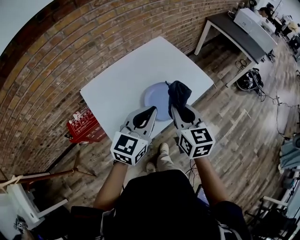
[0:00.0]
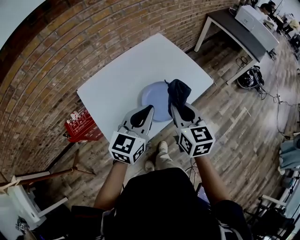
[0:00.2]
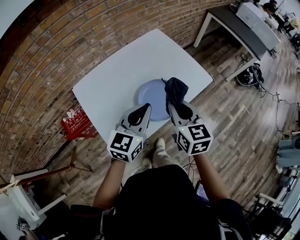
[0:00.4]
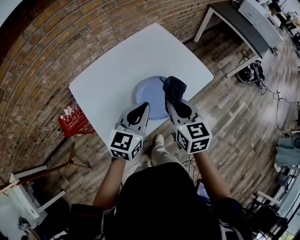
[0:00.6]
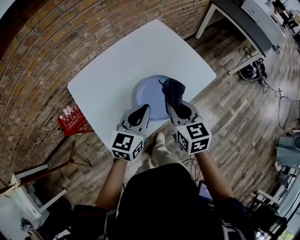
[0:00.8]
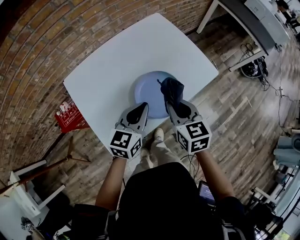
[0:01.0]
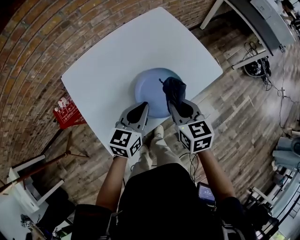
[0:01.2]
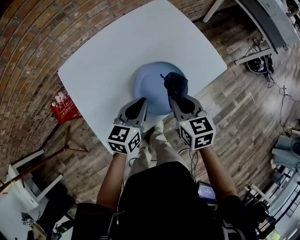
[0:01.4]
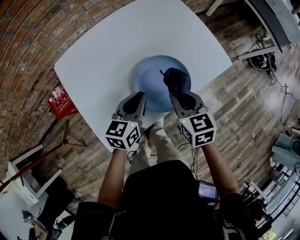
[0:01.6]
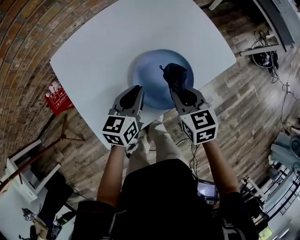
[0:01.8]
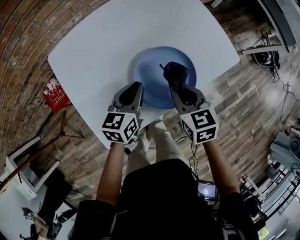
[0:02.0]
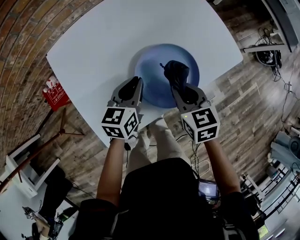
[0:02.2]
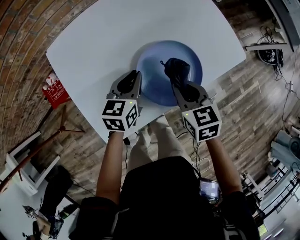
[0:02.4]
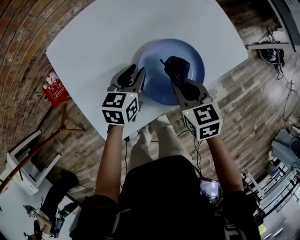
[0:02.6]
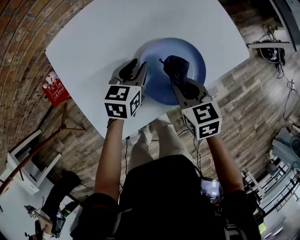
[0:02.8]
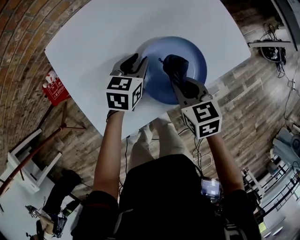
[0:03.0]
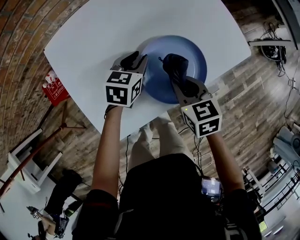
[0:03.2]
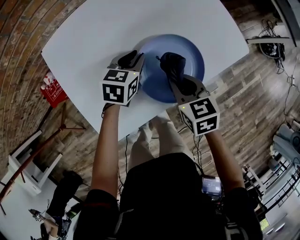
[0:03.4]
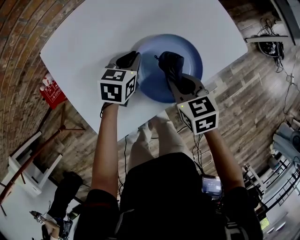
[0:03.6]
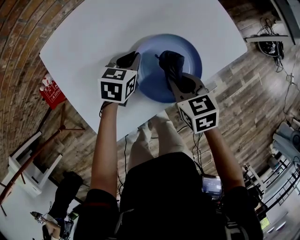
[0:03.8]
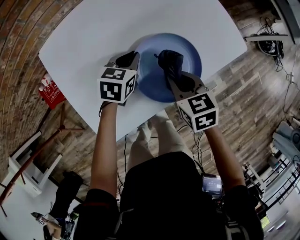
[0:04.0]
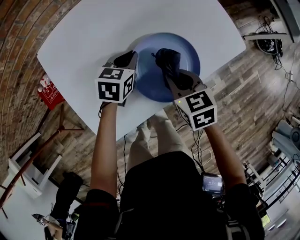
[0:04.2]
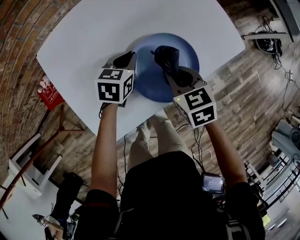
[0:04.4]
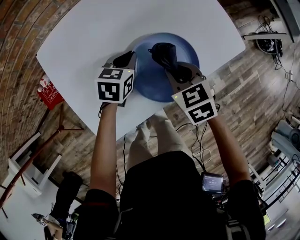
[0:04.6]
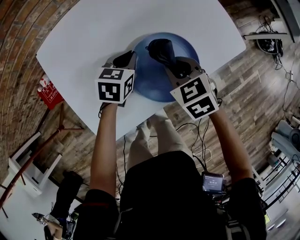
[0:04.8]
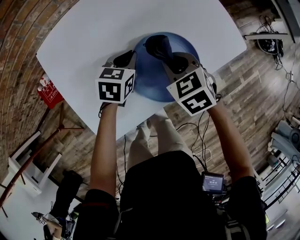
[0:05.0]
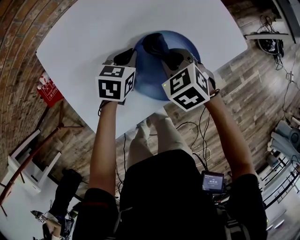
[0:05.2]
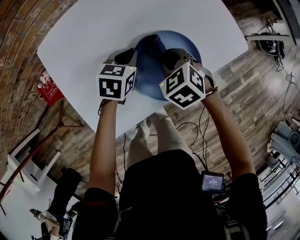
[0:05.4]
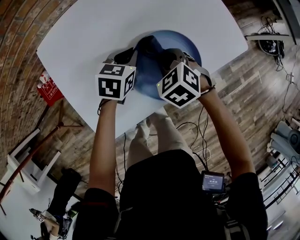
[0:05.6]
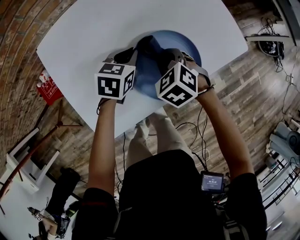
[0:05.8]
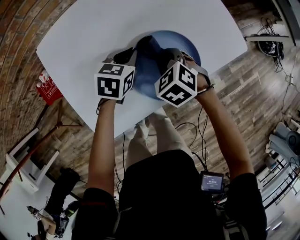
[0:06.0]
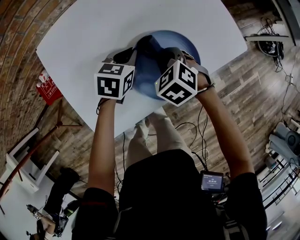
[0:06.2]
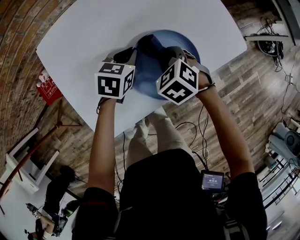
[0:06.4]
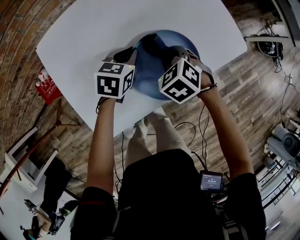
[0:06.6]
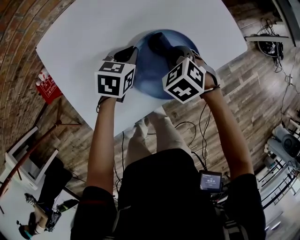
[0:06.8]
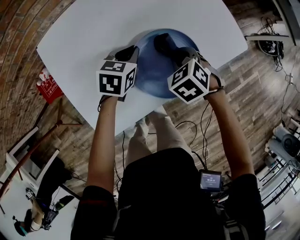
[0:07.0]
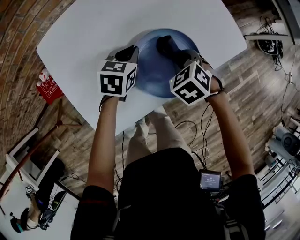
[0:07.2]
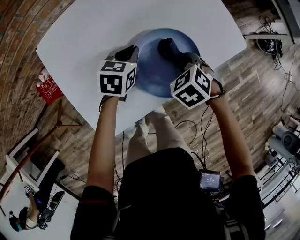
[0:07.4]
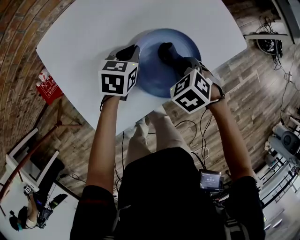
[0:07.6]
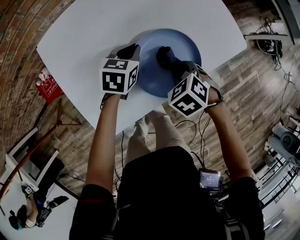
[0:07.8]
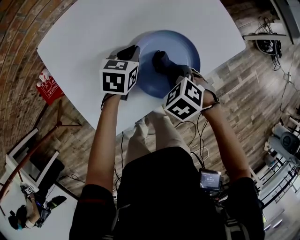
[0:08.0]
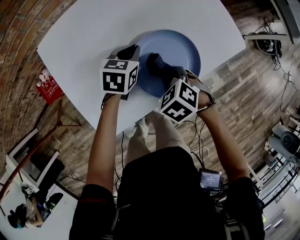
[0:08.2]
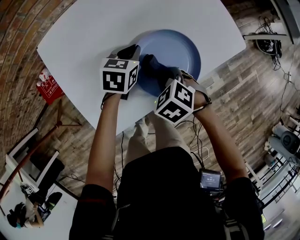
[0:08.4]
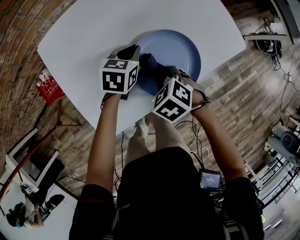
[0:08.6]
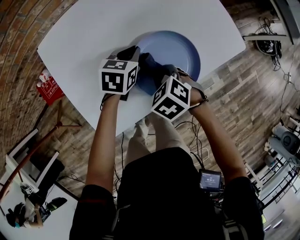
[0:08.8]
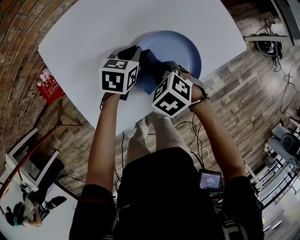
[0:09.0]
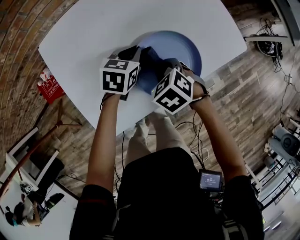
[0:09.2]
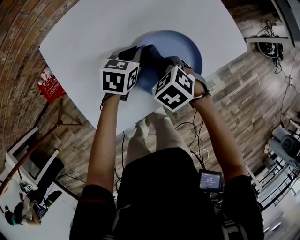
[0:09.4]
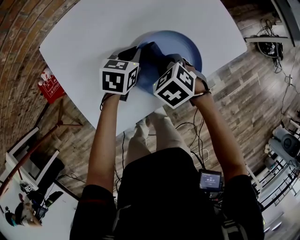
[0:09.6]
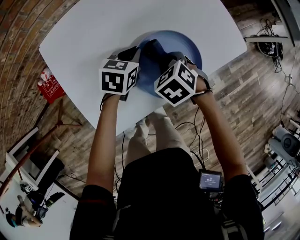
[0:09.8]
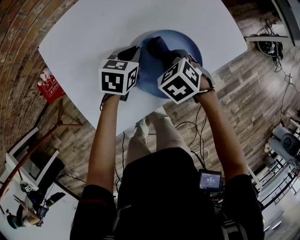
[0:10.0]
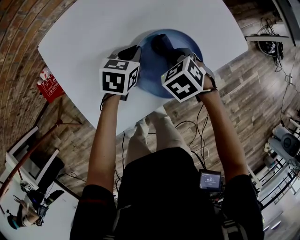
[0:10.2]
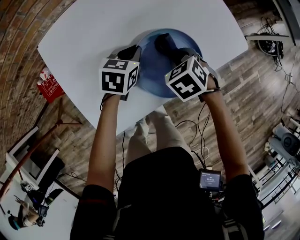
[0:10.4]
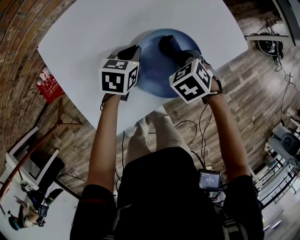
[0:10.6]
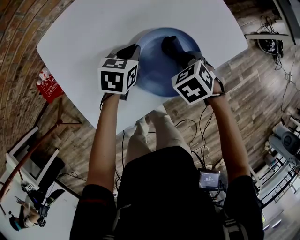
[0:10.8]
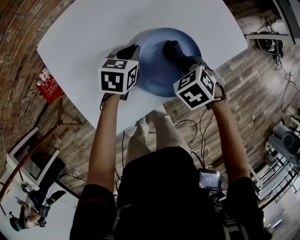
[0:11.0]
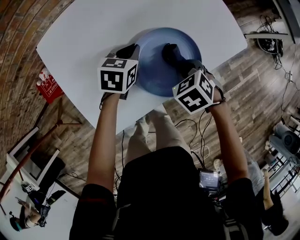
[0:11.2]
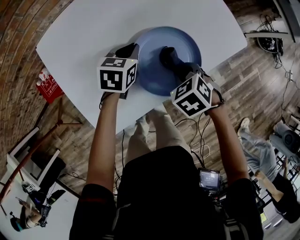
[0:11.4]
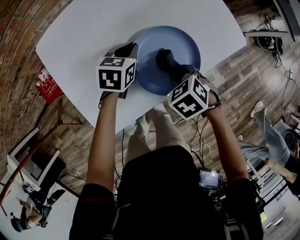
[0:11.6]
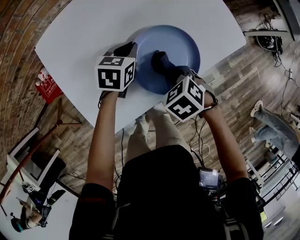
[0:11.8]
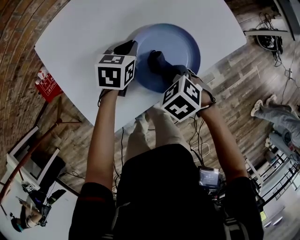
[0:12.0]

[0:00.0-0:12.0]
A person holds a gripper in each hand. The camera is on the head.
0:00.0 to 0:01.6: The right gripper shifts about 20 cm downward and forward, and rotates about 20 degrees; the left gripper travels downward by some 20 cm, and swivels roughly 30 degrees.
0:01.6 to 0:03.0: The left gripper shifts about 10 cm forward and downward, and opens. The right gripper shifts approximately 5 cm downward.
0:03.0 to 0:04.4: There are only small adjustments of the grippers.
0:04.4 to 0:06.0: The right gripper shifts by approximately 5 cm, and rotates approximately 40 degrees.
0:06.0 to 0:07.6: The right gripper goes approximately 5 cm to the right.
0:07.6 to 0:09.0: The right gripper goes roughly 5 cm to the left.
0:09.0 to 0:10.4: The right gripper is displaced to the right and forward by approximately 10 cm.
0:10.4 to 0:12.0: The right gripper goes about 10 cm backward.

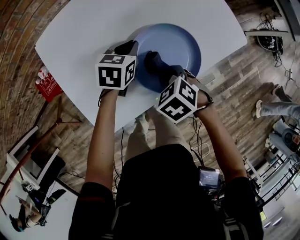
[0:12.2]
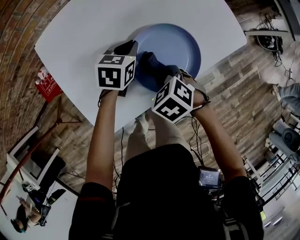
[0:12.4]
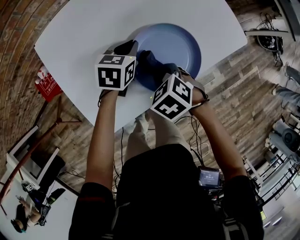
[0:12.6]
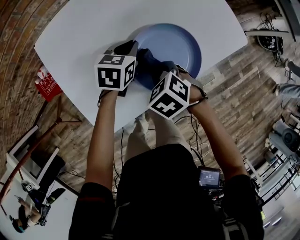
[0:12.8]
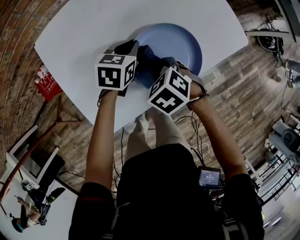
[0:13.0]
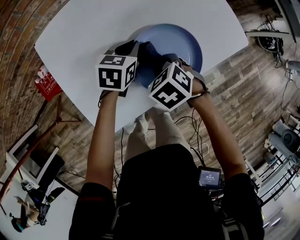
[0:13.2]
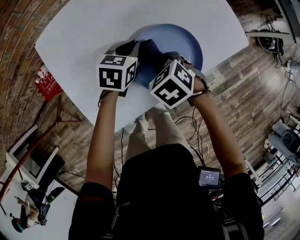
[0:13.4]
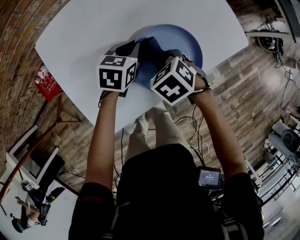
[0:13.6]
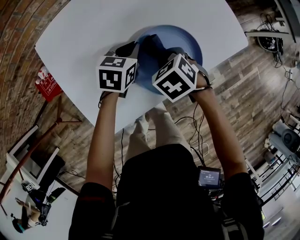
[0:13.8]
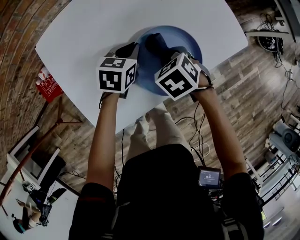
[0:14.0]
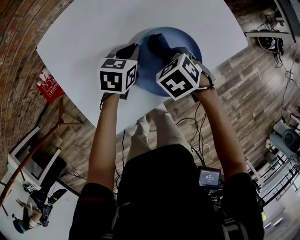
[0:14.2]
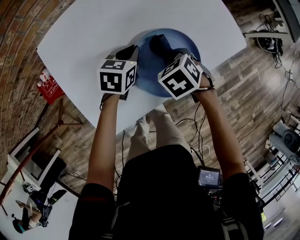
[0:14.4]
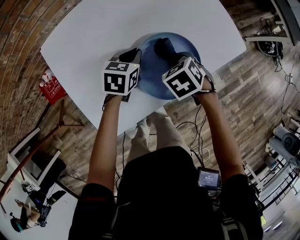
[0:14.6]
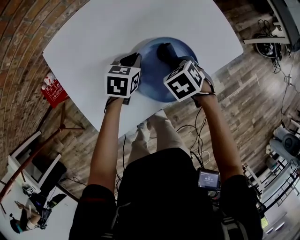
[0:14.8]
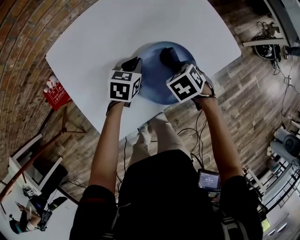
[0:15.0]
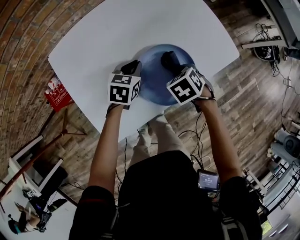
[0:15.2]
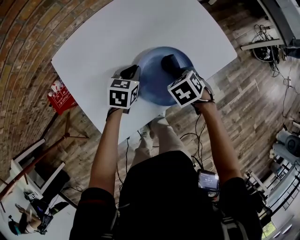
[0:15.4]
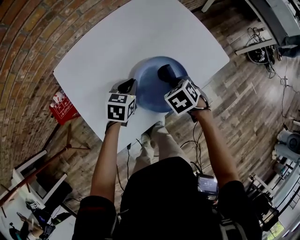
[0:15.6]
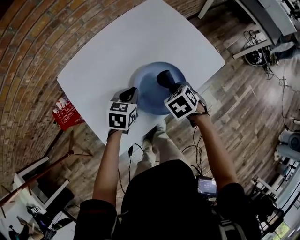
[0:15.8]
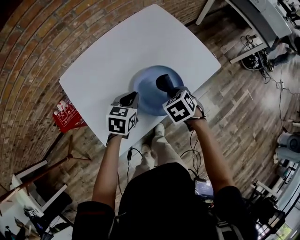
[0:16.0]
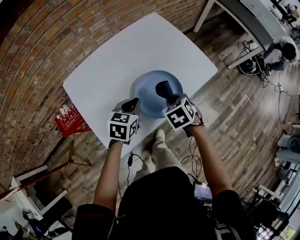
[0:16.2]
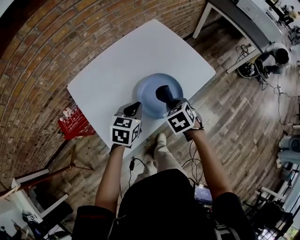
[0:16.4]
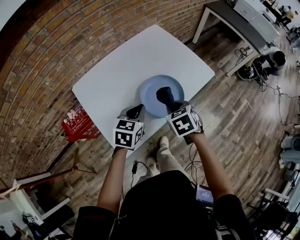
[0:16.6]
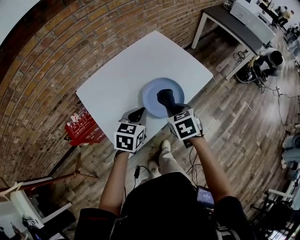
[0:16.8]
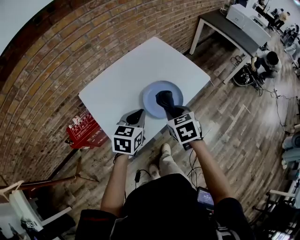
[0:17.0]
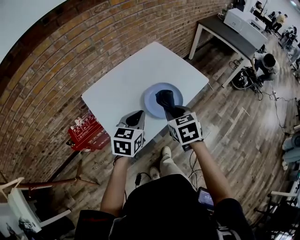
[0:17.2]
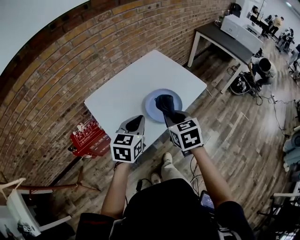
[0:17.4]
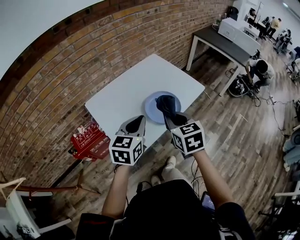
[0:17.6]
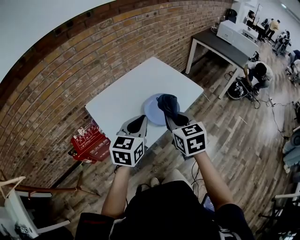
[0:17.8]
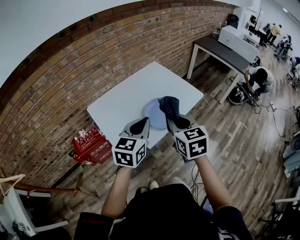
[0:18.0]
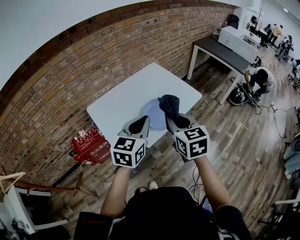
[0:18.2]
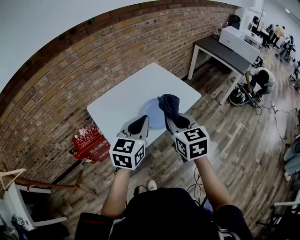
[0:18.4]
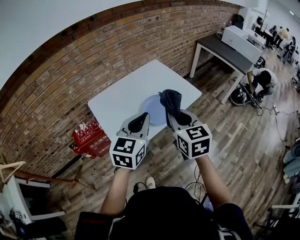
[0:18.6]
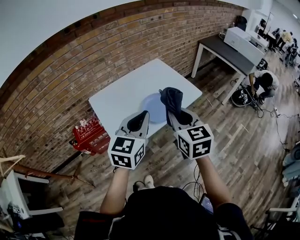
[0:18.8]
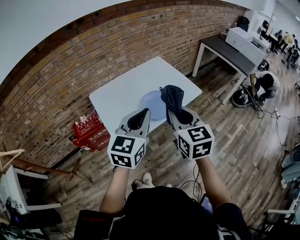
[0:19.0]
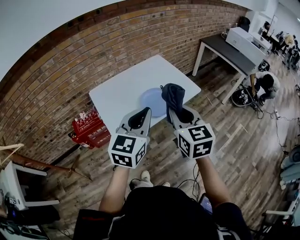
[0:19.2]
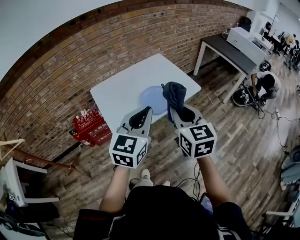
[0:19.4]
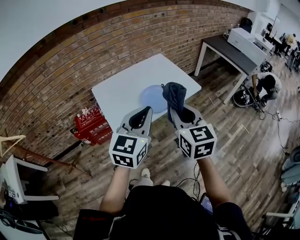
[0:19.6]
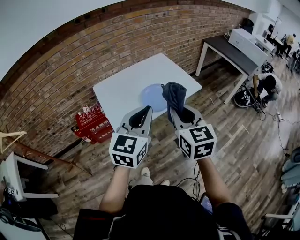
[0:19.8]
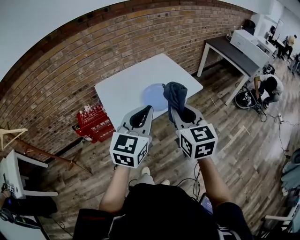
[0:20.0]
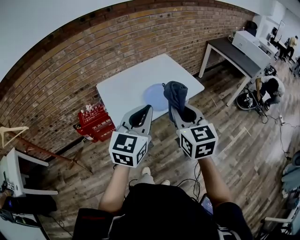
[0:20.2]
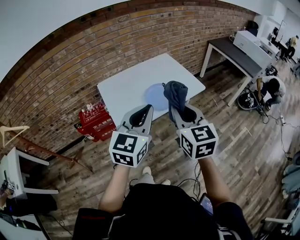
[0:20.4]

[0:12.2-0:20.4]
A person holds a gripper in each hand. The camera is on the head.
0:12.2 to 0:13.8: The right gripper travels forward by approximately 5 cm.
0:13.8 to 0:15.4: The right gripper goes roughly 5 cm to the right.
0:15.4 to 0:17.2: Both grippers move upward and backward, approximately 30 cm. The right gripper tilts its fingers about 30 degrees upward.
0:17.2 to 0:18.8: Both grippers travel together upward, backward and to the right, approximately 20 cm. The right gripper changes its angle by some 20 degrees.
0:18.8 to 0:20.4: The grippers both shift backward by approximately 10 cm.

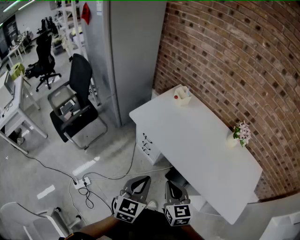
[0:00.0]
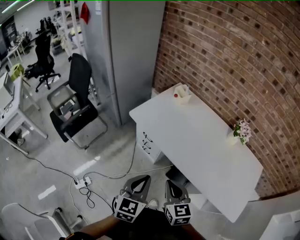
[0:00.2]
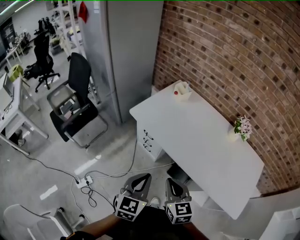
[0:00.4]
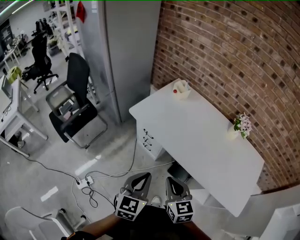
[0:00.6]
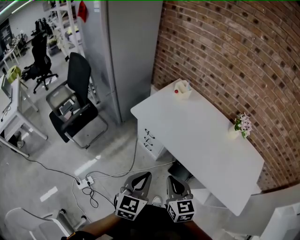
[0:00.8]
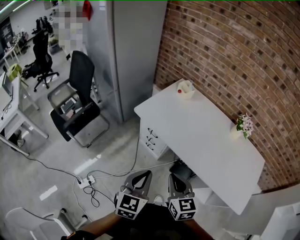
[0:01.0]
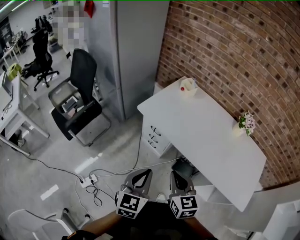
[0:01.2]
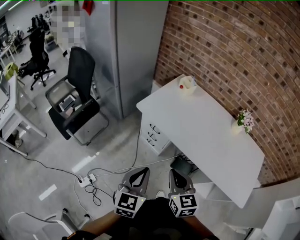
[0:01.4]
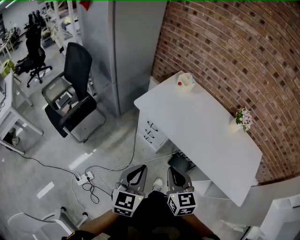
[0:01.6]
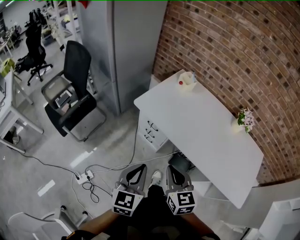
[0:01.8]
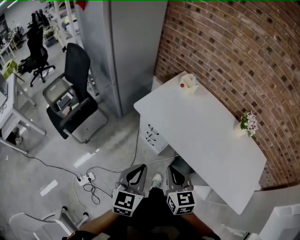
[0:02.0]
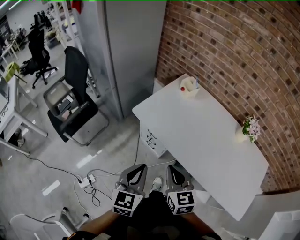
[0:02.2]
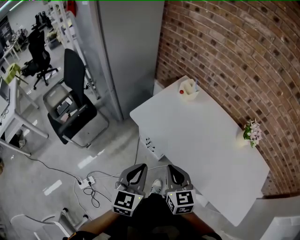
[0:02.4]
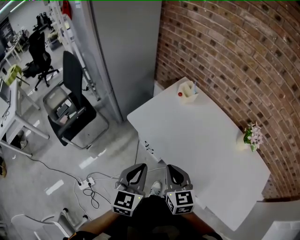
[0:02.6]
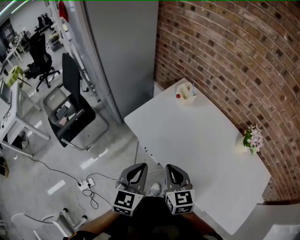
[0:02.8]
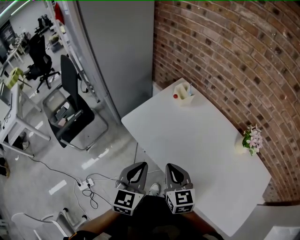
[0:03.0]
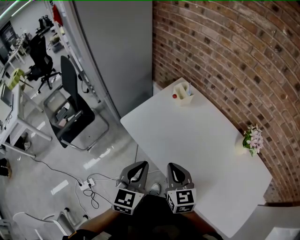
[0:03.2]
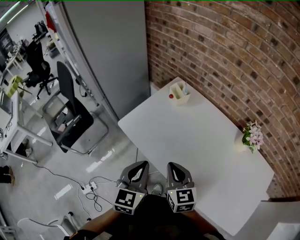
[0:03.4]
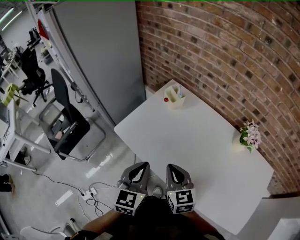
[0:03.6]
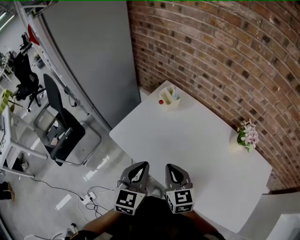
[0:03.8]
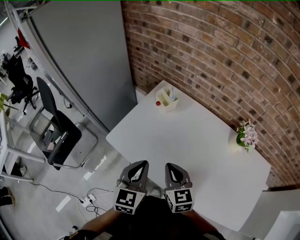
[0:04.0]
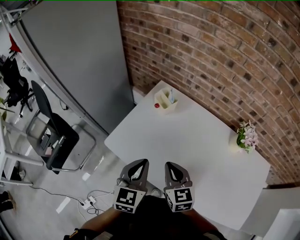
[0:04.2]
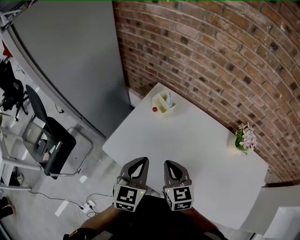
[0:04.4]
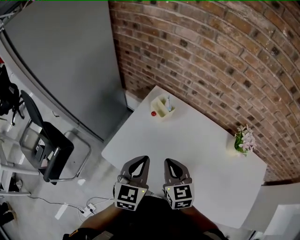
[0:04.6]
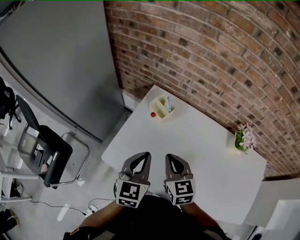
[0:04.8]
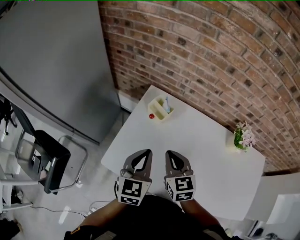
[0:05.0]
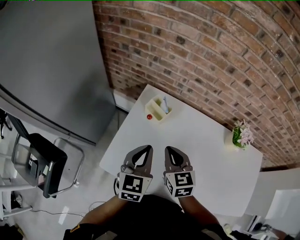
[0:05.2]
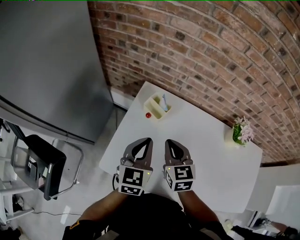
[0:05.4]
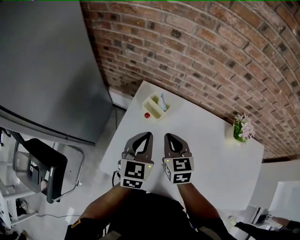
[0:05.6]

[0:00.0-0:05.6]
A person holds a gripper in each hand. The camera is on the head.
0:00.0 to 0:01.4: The two grippers go approximately 10 cm to the left.
0:01.4 to 0:02.8: The grippers both shift forward and to the right by roughly 20 cm.
0:02.8 to 0:04.2: Both grippers move forward and to the right, approximately 15 cm.
0:04.2 to 0:05.6: Both grippers travel together forward, approximately 20 cm.
